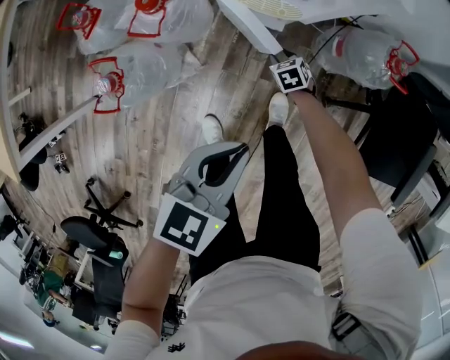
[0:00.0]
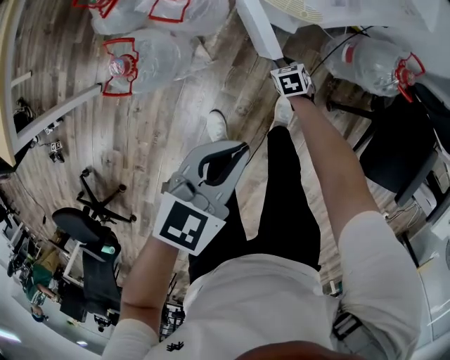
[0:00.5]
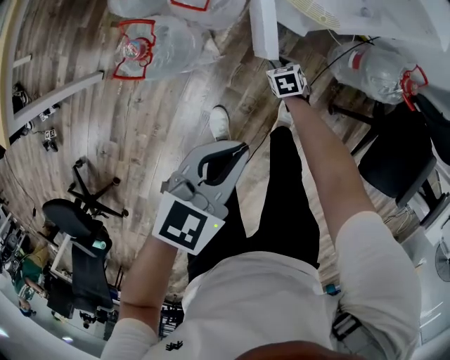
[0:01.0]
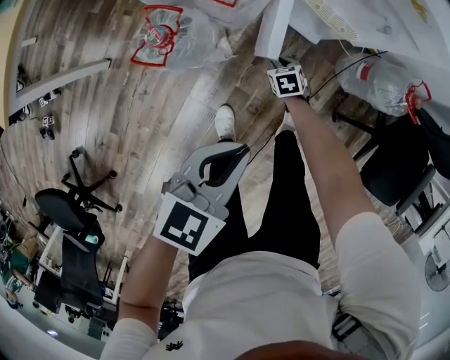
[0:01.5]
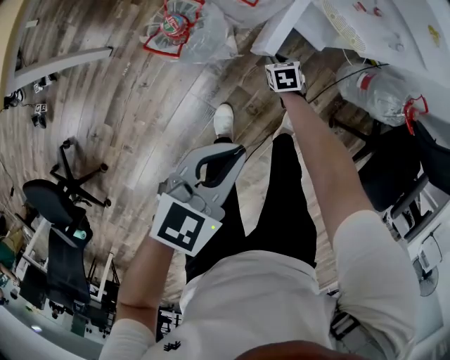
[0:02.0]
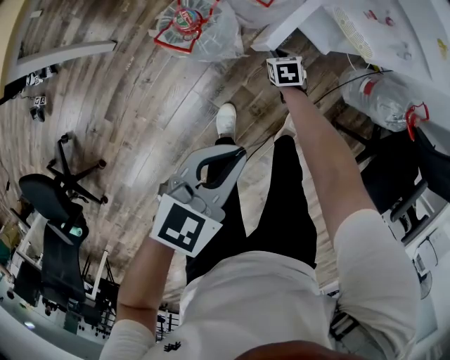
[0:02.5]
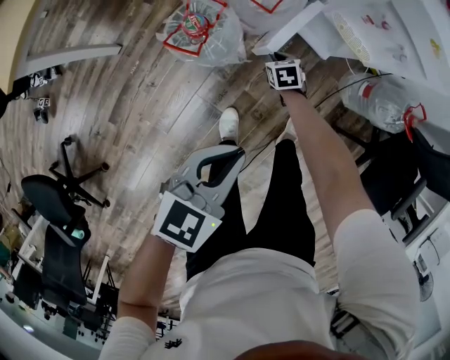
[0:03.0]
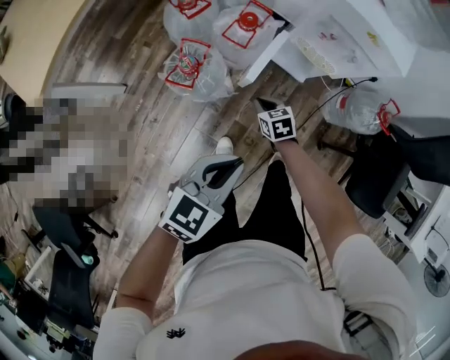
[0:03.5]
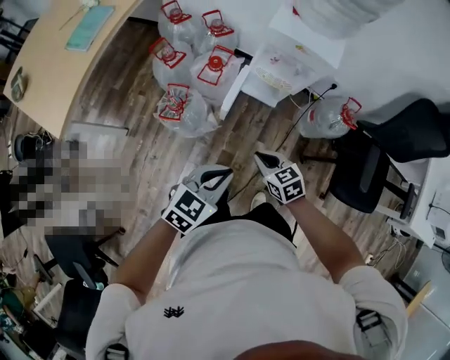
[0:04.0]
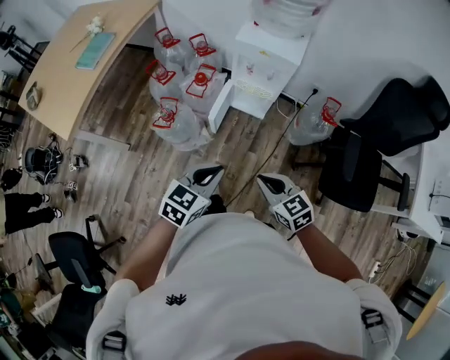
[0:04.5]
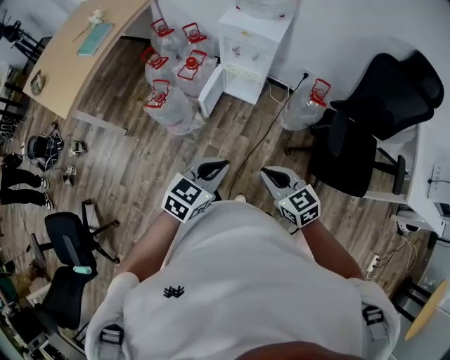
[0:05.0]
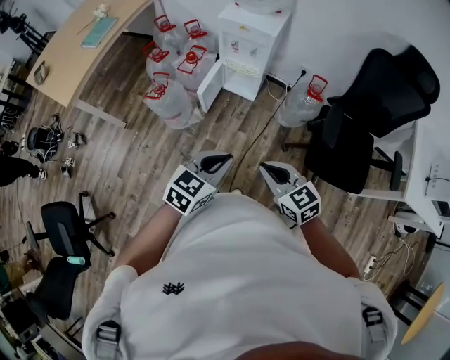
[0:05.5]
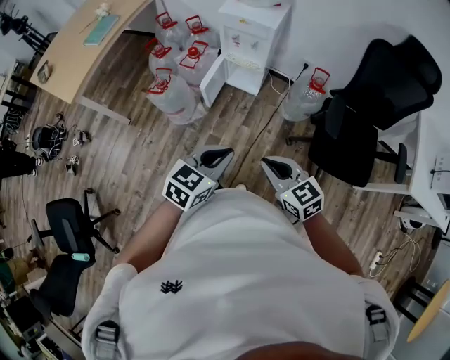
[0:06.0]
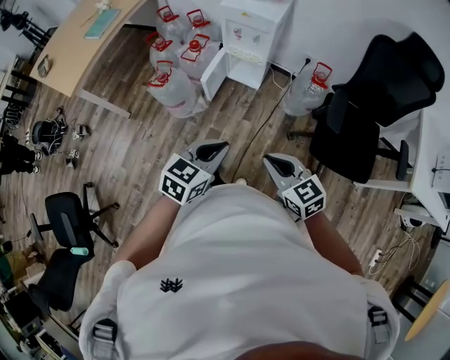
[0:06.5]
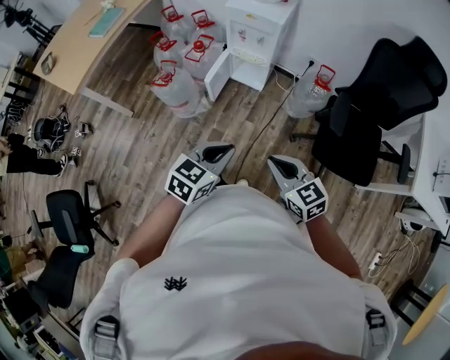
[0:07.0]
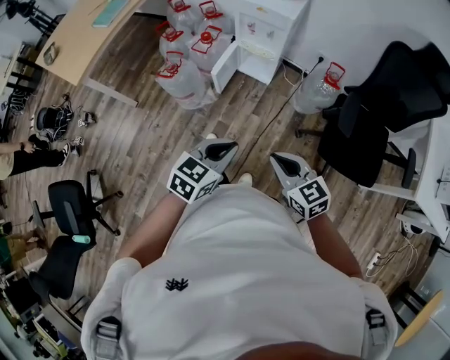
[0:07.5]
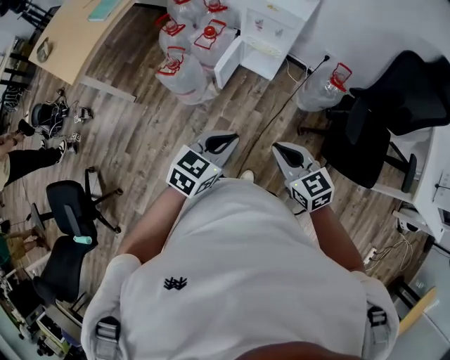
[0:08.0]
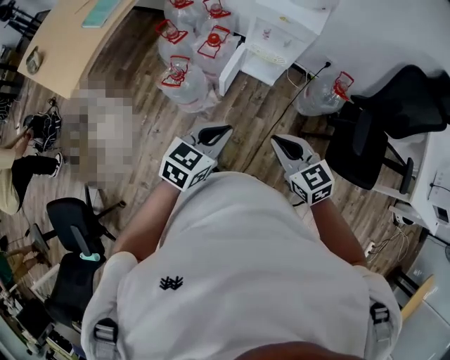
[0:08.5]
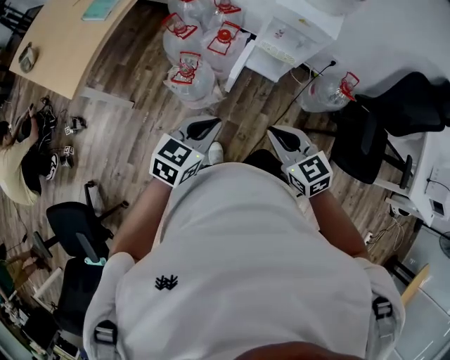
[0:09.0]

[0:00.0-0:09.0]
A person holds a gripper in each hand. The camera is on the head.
0:00.0 to 0:02.0: The left gripper travels to the left and backward by approximately 20 cm, while the right gripper is displaced to the left by some 20 cm.
0:02.0 to 0:04.5: The left gripper heads upward, to the right and backward, covering roughly 20 cm. Meanwhile the right gripper moves upward and backward, about 60 cm, points its fingers some 30 degrees further upward, and closes up.
0:04.5 to 0:07.0: Both grippers travel together backward and to the right, some 20 cm.
0:07.0 to 0:09.0: The grippers both shift to the left and forward by roughly 35 cm.

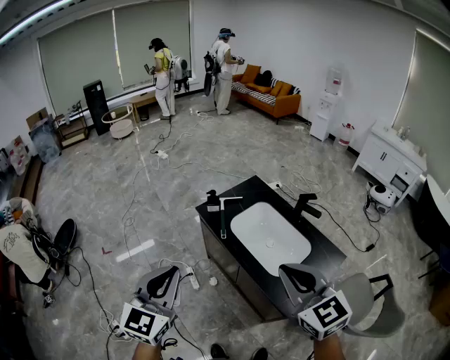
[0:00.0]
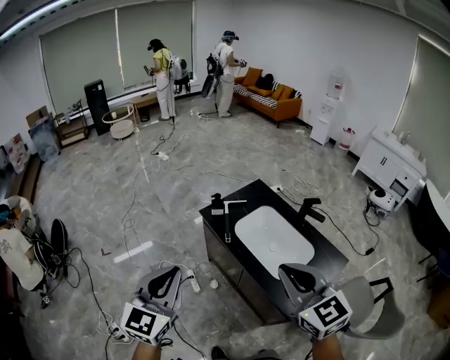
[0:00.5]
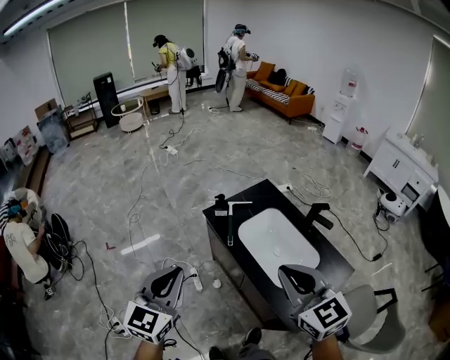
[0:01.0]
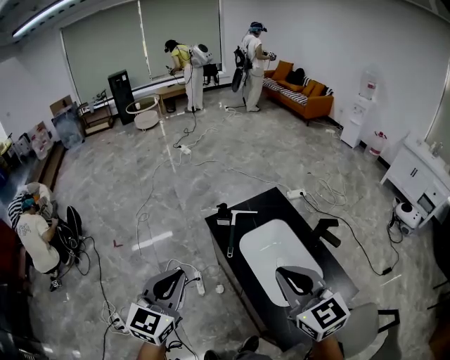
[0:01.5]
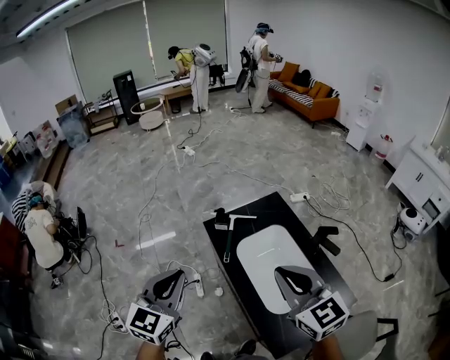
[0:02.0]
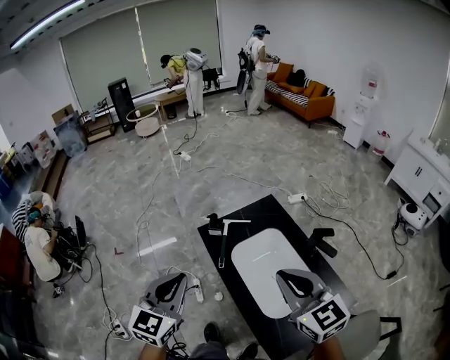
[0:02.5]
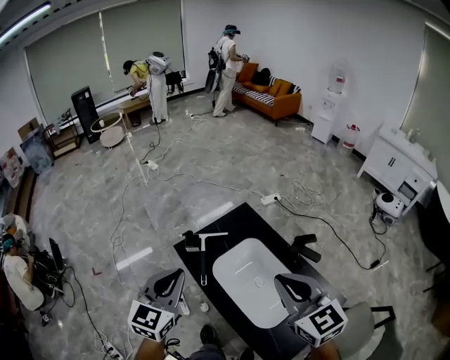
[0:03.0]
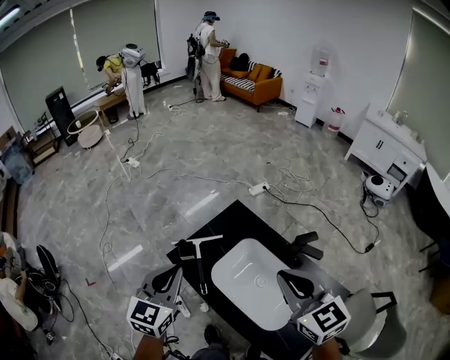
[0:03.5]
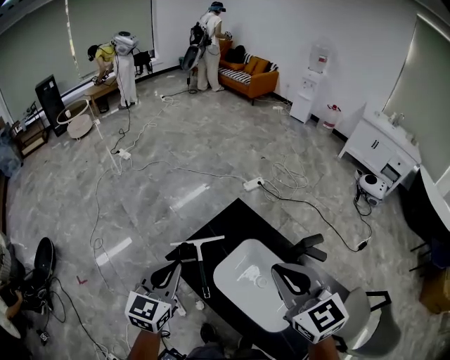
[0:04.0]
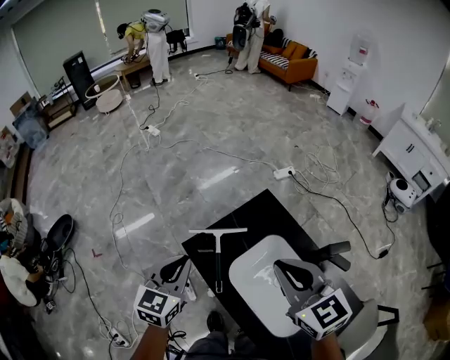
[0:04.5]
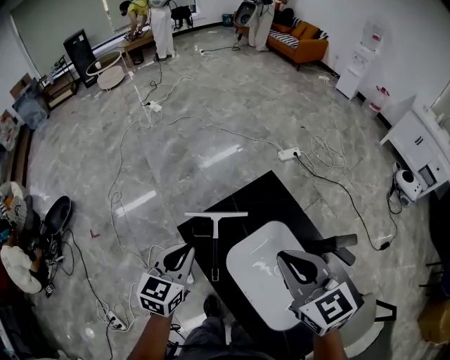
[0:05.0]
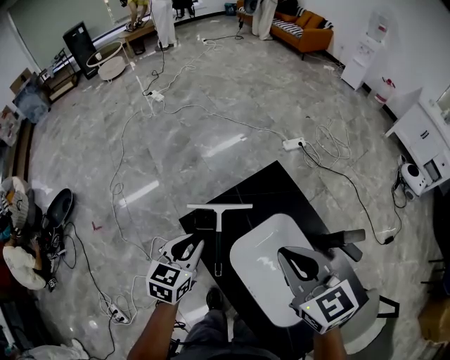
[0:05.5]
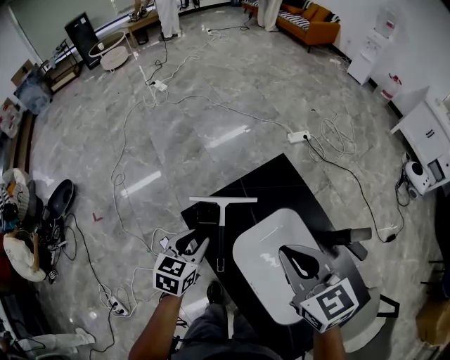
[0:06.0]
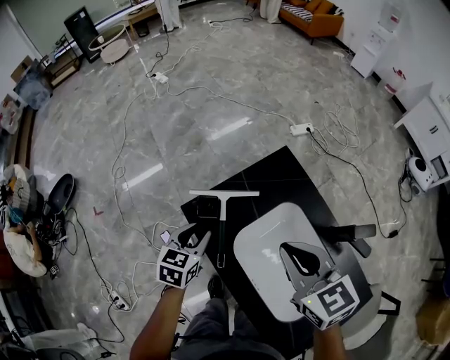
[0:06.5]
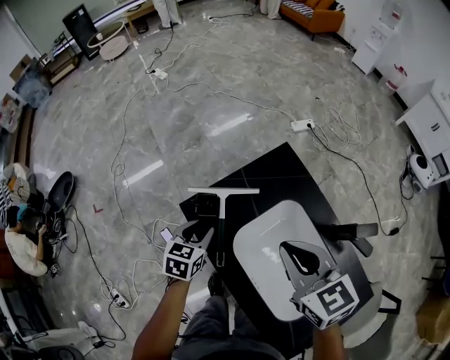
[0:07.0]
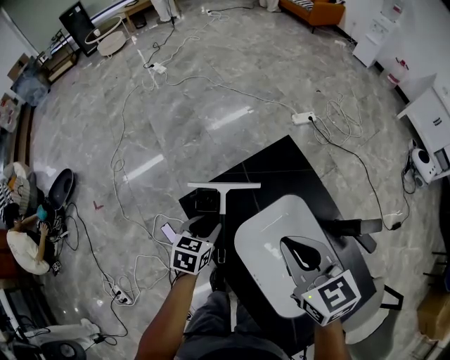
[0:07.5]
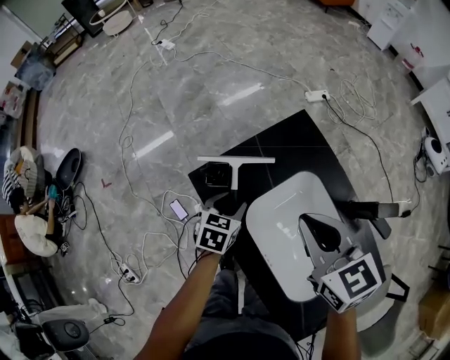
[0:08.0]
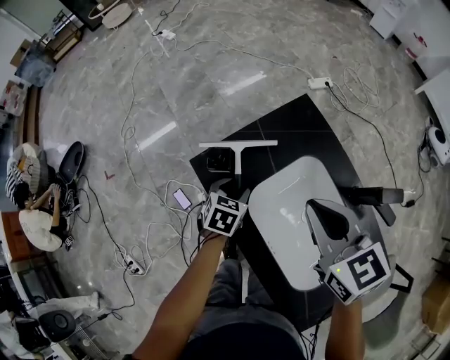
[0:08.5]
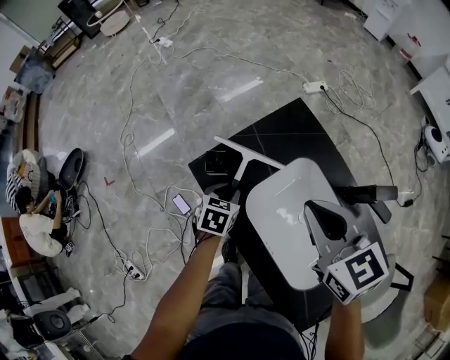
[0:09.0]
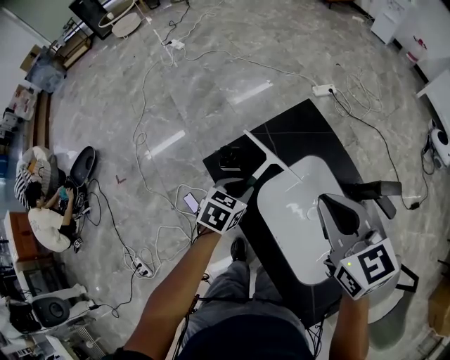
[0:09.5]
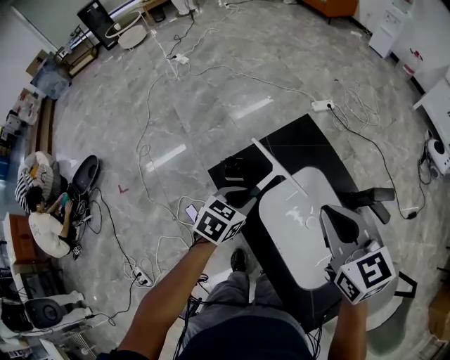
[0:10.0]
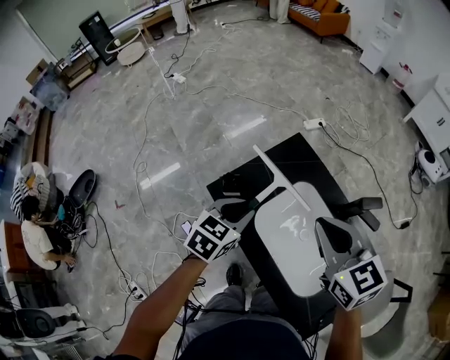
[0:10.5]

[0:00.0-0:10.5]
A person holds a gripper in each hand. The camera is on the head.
0:00.0 to 0:02.0: Both grippers move forward and to the right, some 20 cm.
0:02.0 to 0:04.0: Both grippers travel together forward, about 25 cm. The left gripper turns by about 20 degrees. The right gripper rotates about 20 degrees.
0:04.0 to 0:06.5: The right gripper heads downward and forward, covering approximately 20 cm, and turns by some 20 degrees, while the left gripper is displaced downward by some 25 cm, turns by about 30 degrees, and opens its fingers.
0:06.5 to 0:08.5: The left gripper travels downward and to the right by about 15 cm.
0:08.5 to 0:10.5: The right gripper moves upward and backward, some 15 cm, while the left gripper shifts approximately 25 cm upward, rotates about 20 degrees, and closes up.

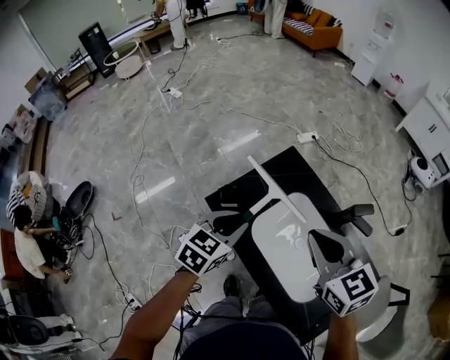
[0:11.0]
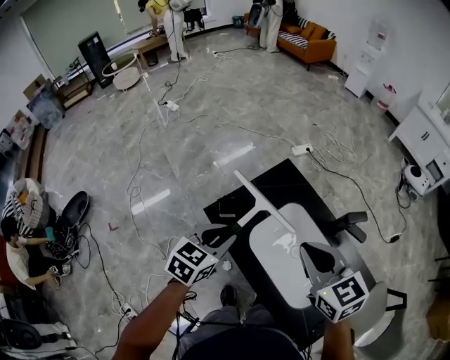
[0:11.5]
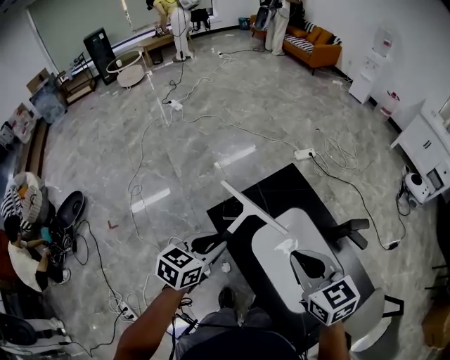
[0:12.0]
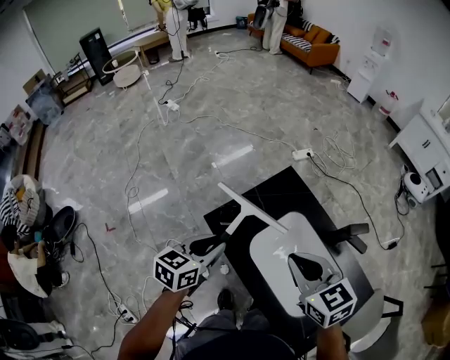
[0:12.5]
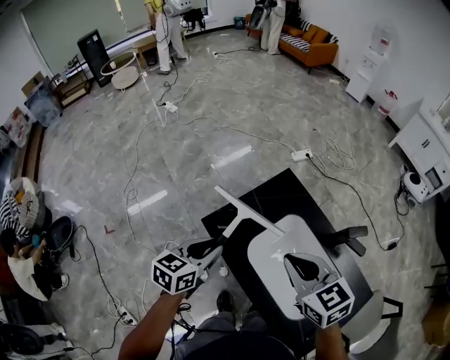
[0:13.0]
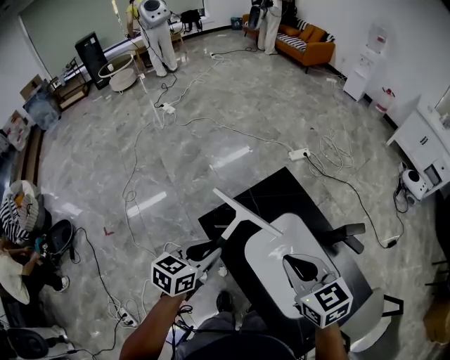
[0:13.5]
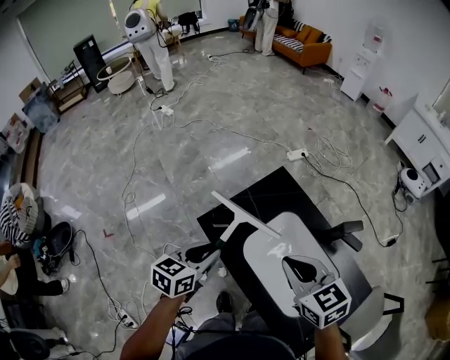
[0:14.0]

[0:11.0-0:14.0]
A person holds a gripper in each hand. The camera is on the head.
0:11.0 to 0:12.5: The left gripper goes some 5 cm to the left.
0:12.5 to 0:14.0: The grippers stay close to where they were, moving slightly.

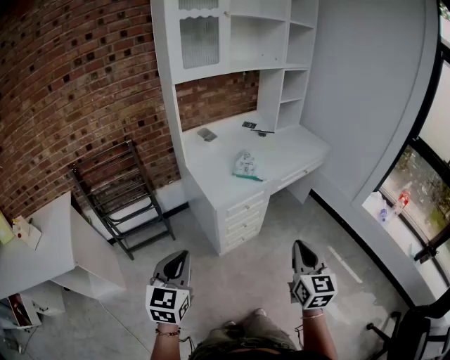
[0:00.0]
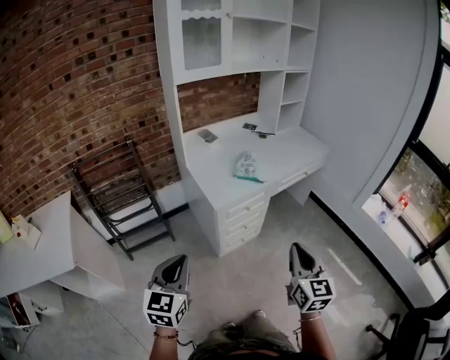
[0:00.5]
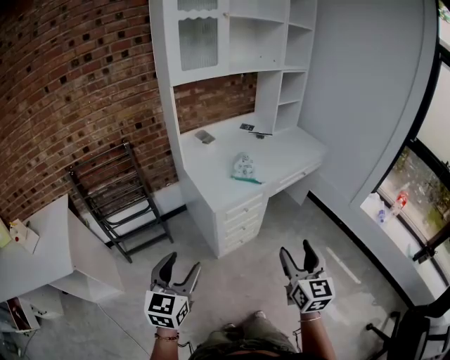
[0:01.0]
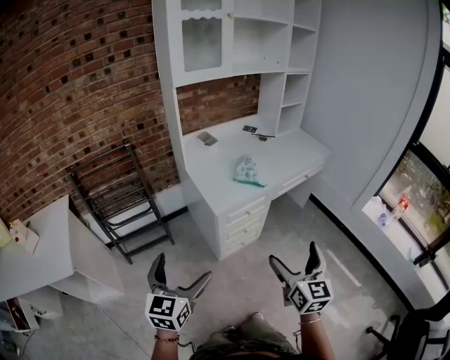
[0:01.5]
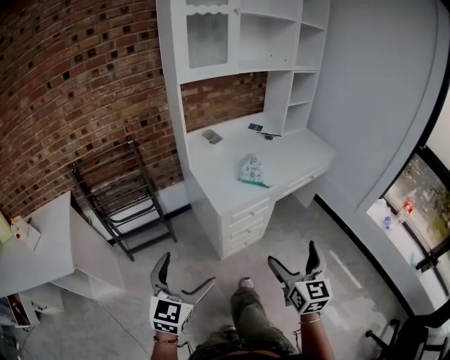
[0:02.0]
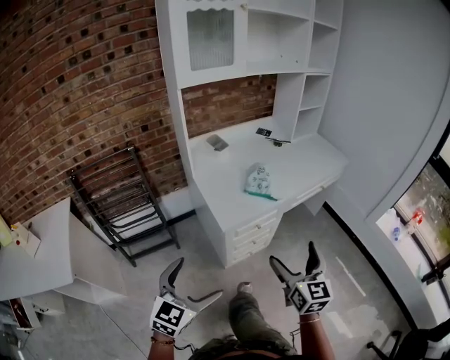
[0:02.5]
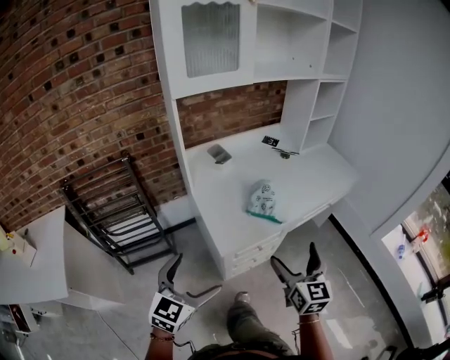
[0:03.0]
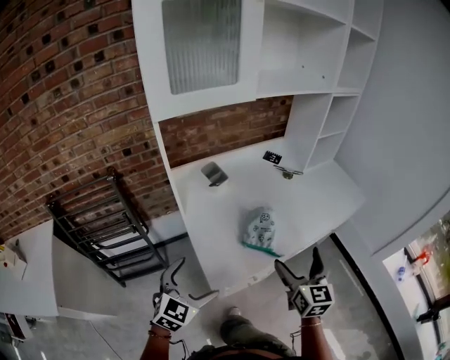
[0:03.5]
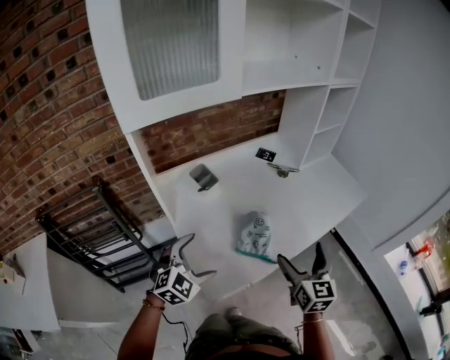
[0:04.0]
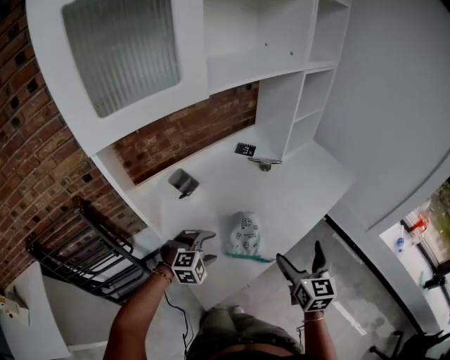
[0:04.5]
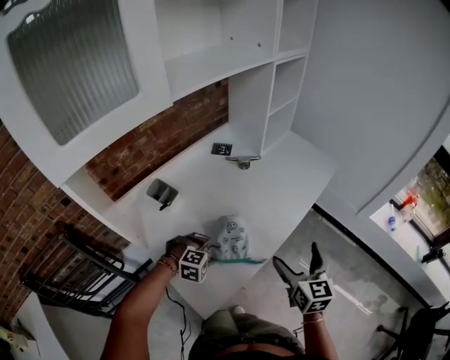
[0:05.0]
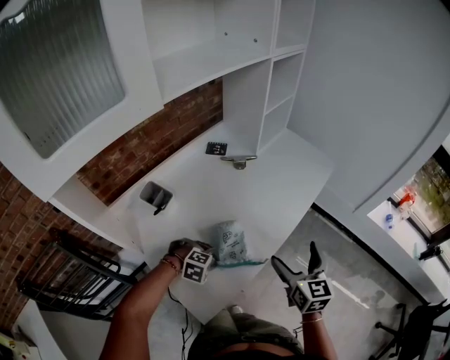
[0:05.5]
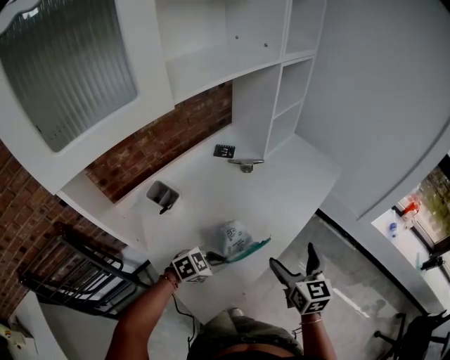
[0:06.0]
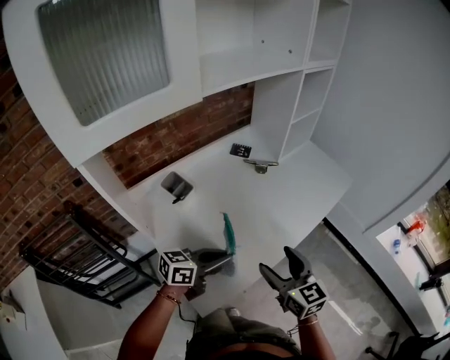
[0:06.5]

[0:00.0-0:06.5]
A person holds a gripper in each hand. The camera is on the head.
0:00.0 to 0:02.0: The left gripper opens its fingers, while the right gripper shifts by some 5 cm, and opens up.
0:02.0 to 0:04.5: Both grippers are carried forward, approximately 50 cm. The left gripper points its fingers approximately 40 degrees further downward, and closes.
0:04.5 to 0:06.5: The left gripper is displaced upward by roughly 10 cm, rolls counterclockwise, seen from behind, by roughly 70 degrees, and closes up; the right gripper ends up some 5 cm from where it was.
